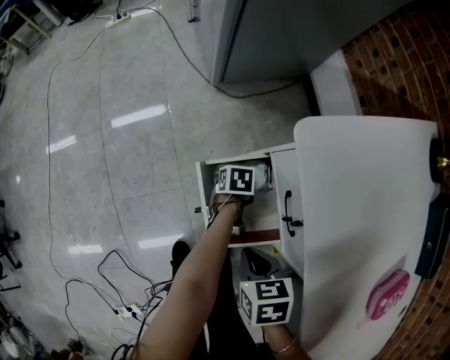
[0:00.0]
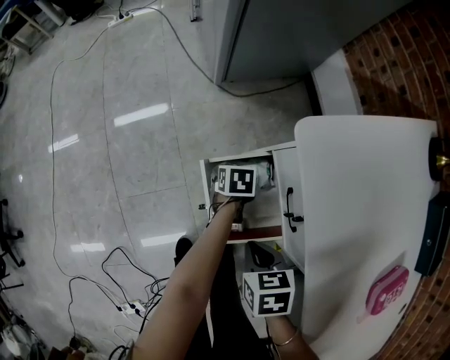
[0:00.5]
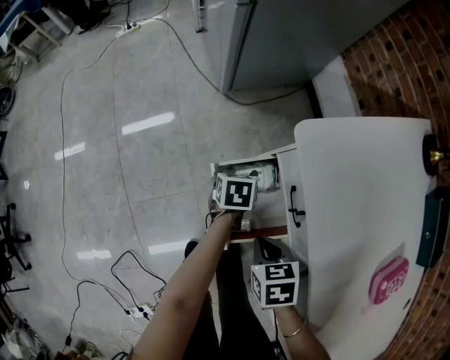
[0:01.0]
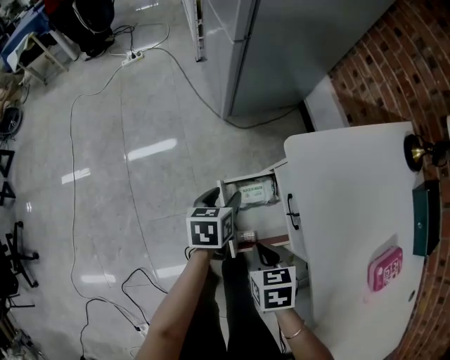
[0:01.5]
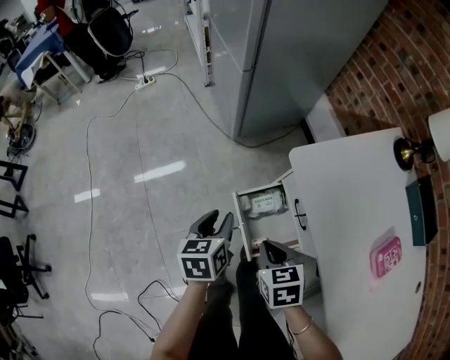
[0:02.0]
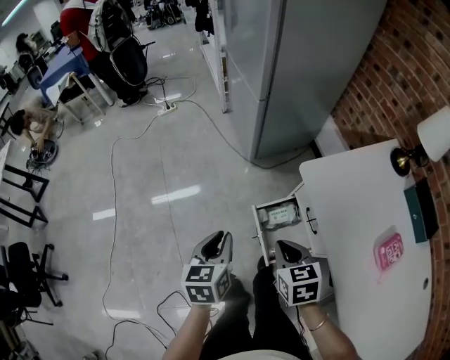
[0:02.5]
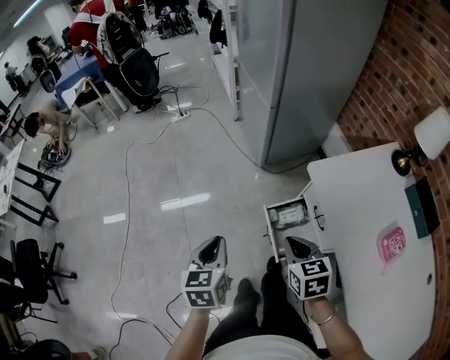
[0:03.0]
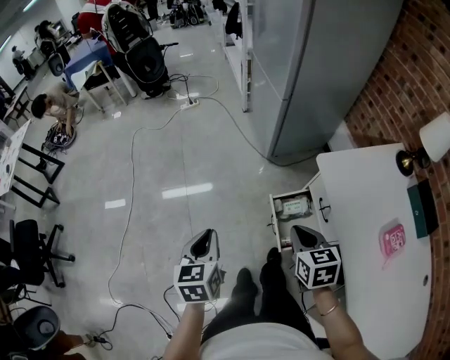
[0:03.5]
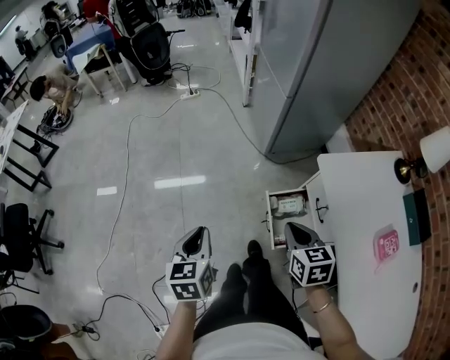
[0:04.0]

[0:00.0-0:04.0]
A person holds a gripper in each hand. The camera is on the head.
0:00.0 to 0:02.0: The right gripper travels upward by some 20 cm. Meanwhile the left gripper shifts roughly 40 cm upward and to the left, swivels some 30 degrees, and opens, then closes once more.
0:02.0 to 0:04.0: The left gripper travels to the left, backward and upward by roughly 35 cm, rotates about 20 degrees, and closes its fingers, while the right gripper moves upward, to the left and backward, about 20 cm.

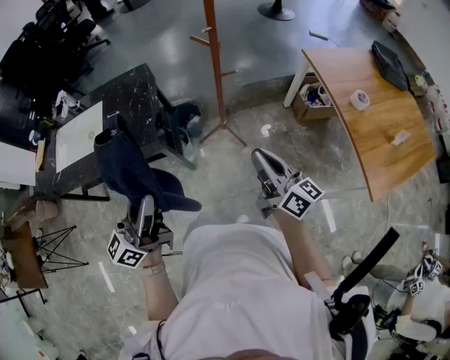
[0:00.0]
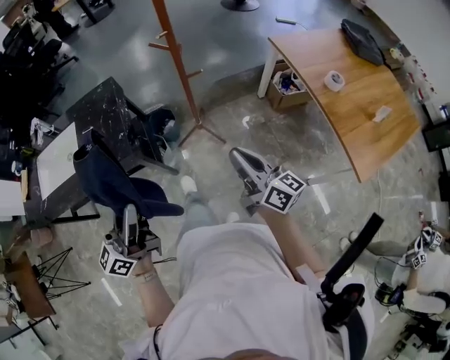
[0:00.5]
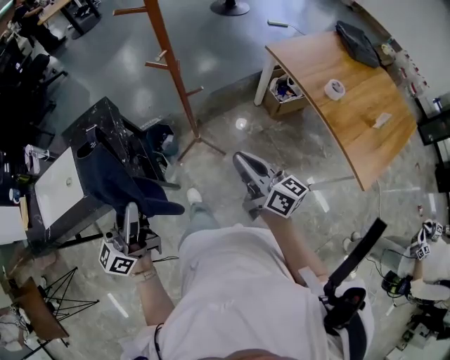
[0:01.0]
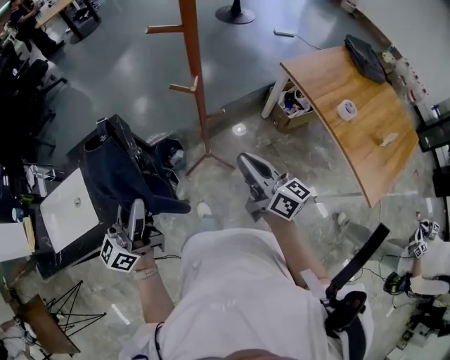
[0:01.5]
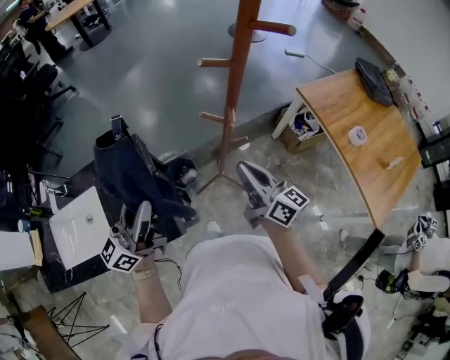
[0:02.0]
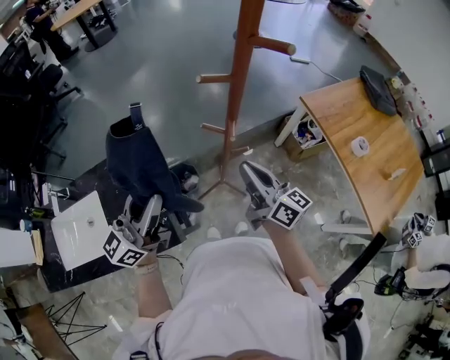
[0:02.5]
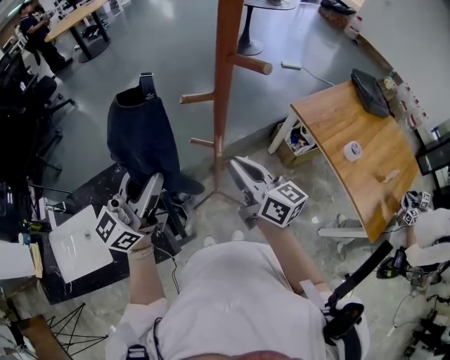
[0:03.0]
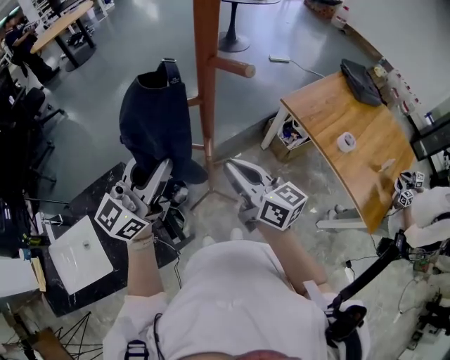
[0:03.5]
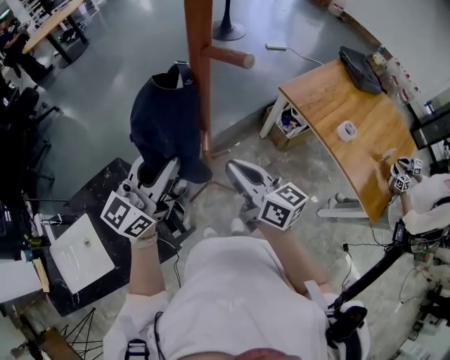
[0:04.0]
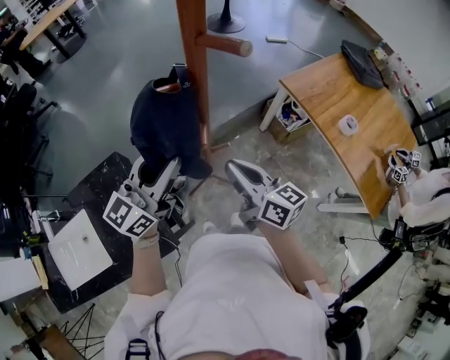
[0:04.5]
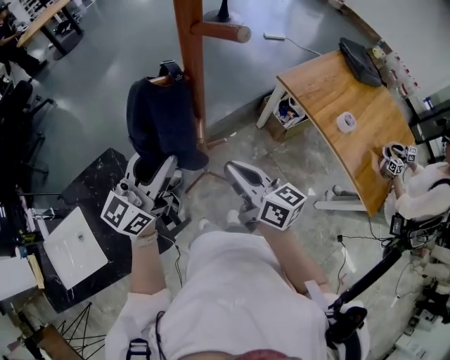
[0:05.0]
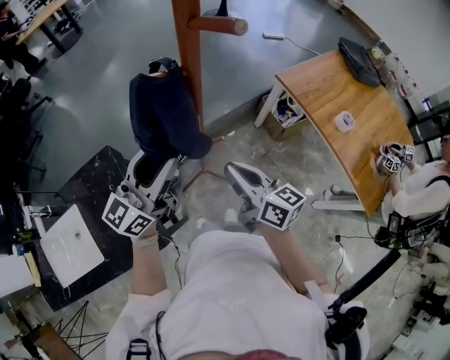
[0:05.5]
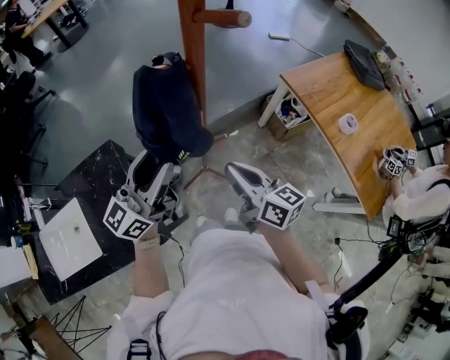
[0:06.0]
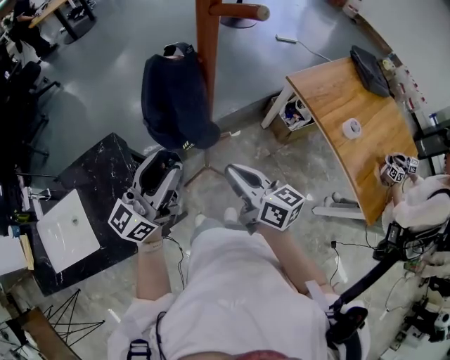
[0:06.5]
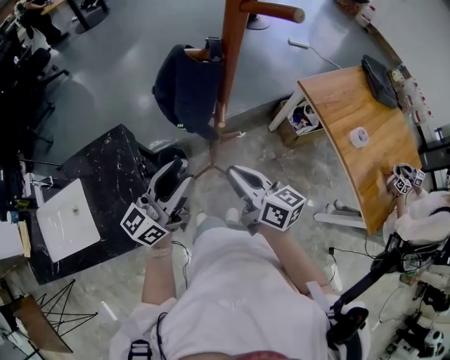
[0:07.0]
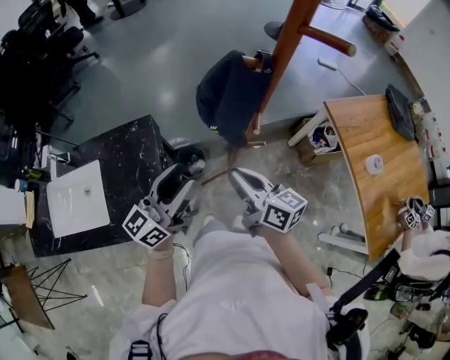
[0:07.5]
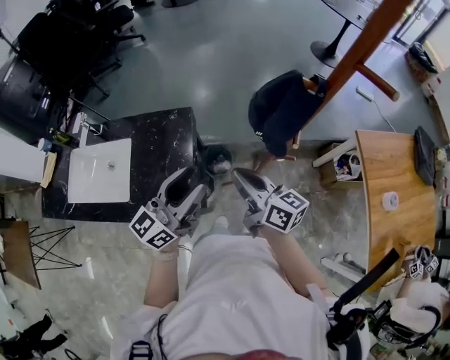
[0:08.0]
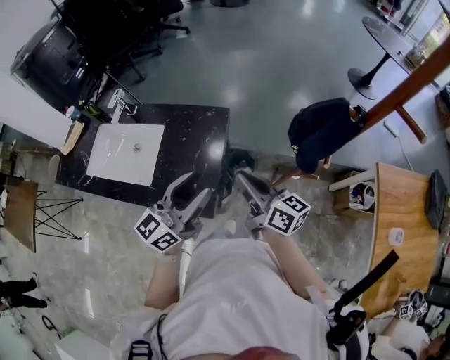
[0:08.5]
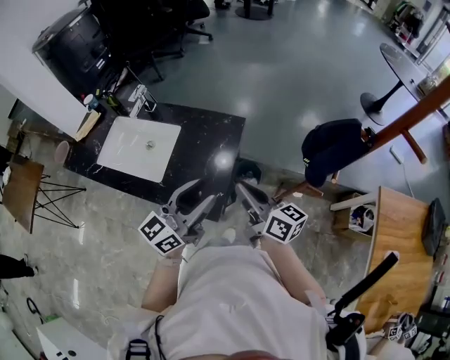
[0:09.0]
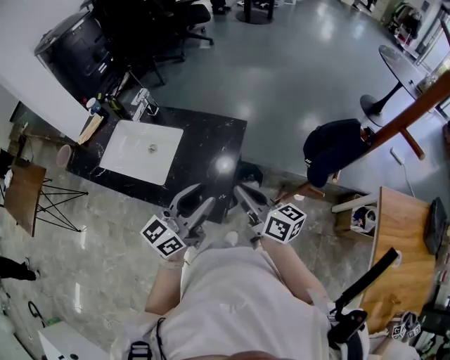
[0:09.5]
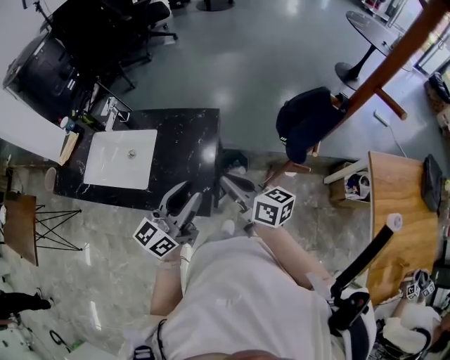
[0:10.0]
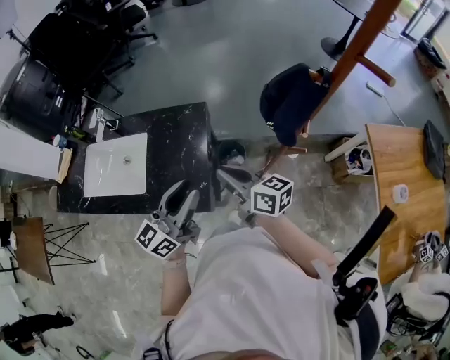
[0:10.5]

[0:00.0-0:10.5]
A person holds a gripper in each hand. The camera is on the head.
0:00.0 to 0:02.0: The left gripper goes approximately 35 cm forward. Meanwhile the right gripper goes roughly 35 cm forward and to the left.
0:02.0 to 0:04.0: The left gripper goes some 20 cm forward and to the right, and rotates roughly 20 degrees; the right gripper heads forward, covering approximately 5 cm.
0:04.0 to 0:06.5: The left gripper moves downward and backward, approximately 10 cm; the right gripper shifts approximately 5 cm downward.
0:06.5 to 0:08.5: The right gripper shifts by about 25 cm, and rotates some 40 degrees; the left gripper moves about 20 cm, and rotates roughly 30 degrees.
0:08.5 to 0:10.5: The grippers make only small movements.

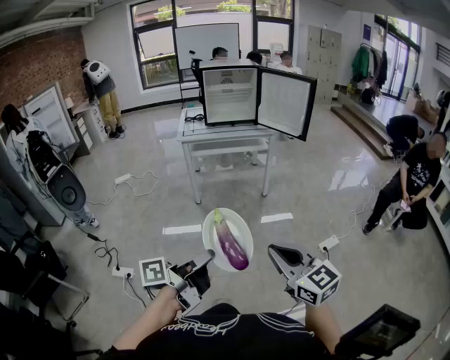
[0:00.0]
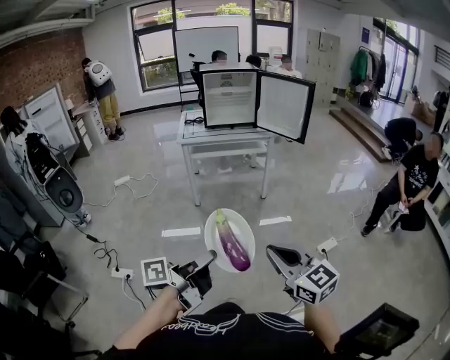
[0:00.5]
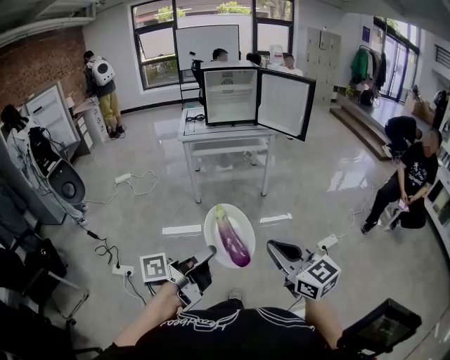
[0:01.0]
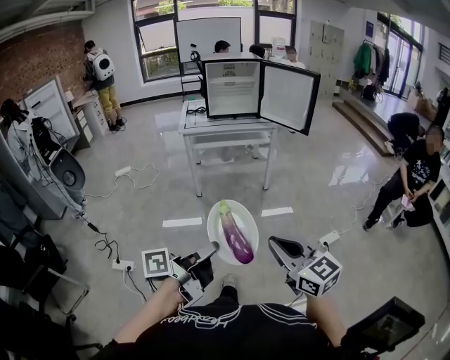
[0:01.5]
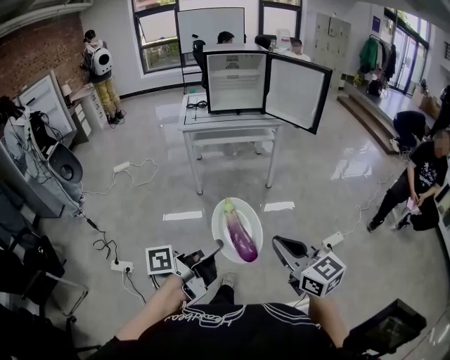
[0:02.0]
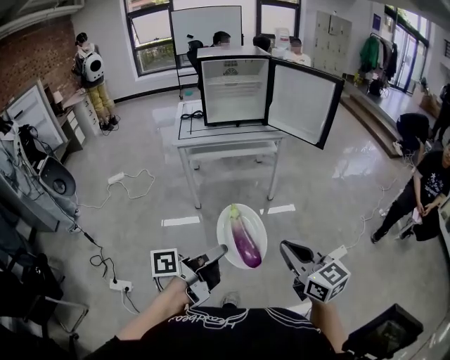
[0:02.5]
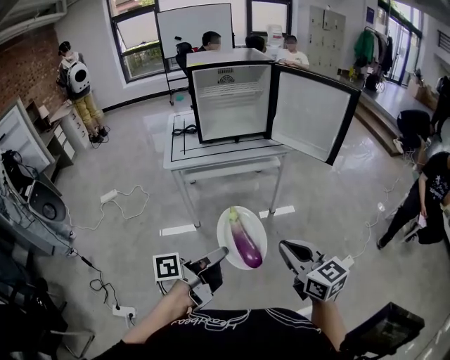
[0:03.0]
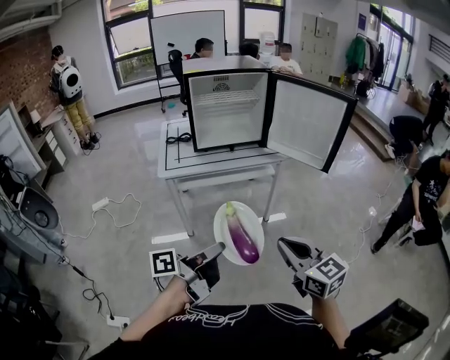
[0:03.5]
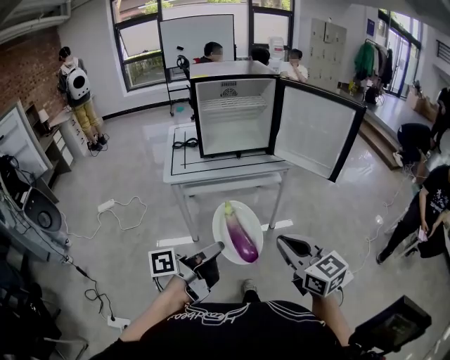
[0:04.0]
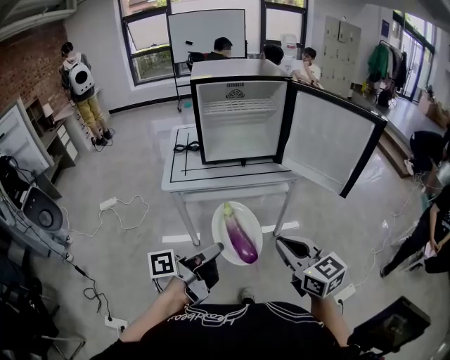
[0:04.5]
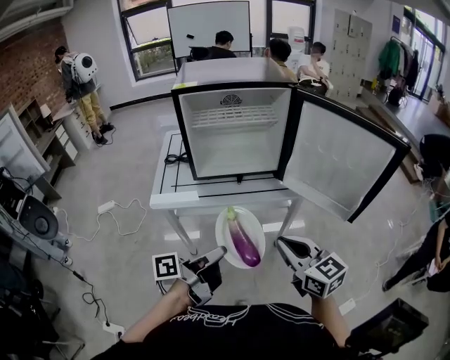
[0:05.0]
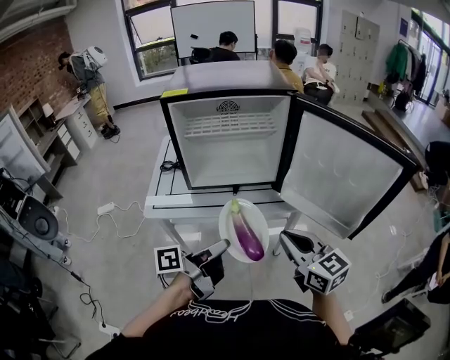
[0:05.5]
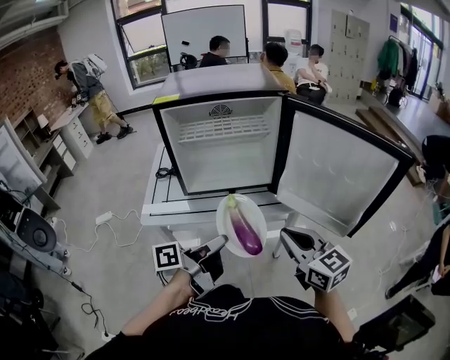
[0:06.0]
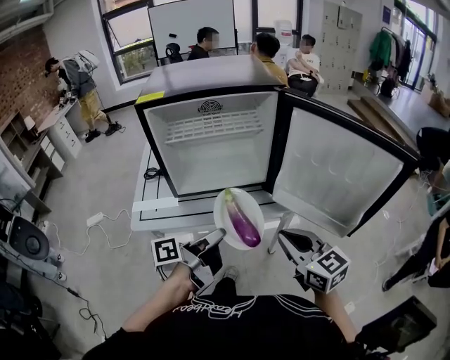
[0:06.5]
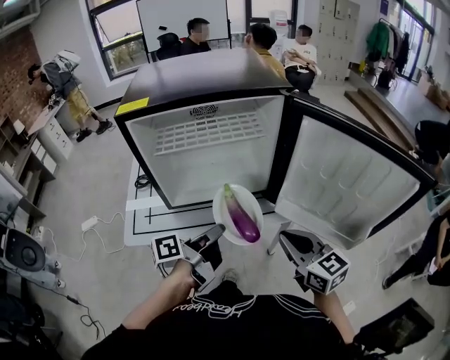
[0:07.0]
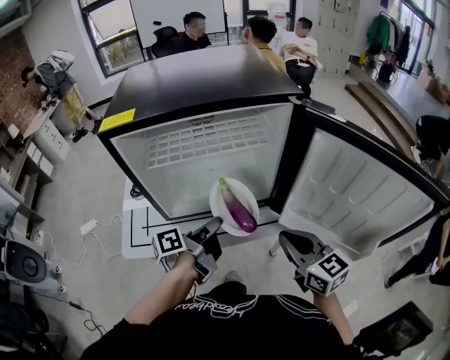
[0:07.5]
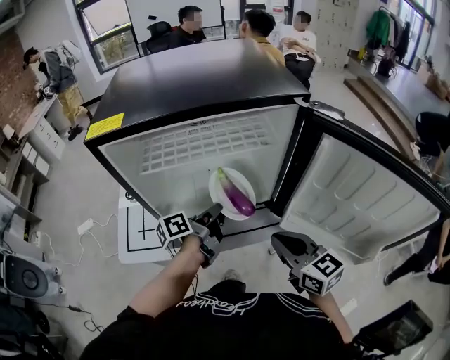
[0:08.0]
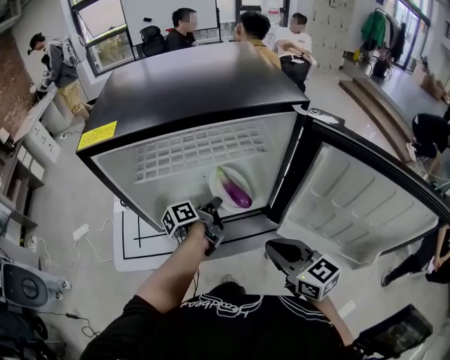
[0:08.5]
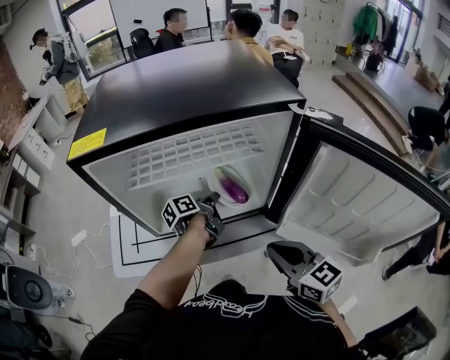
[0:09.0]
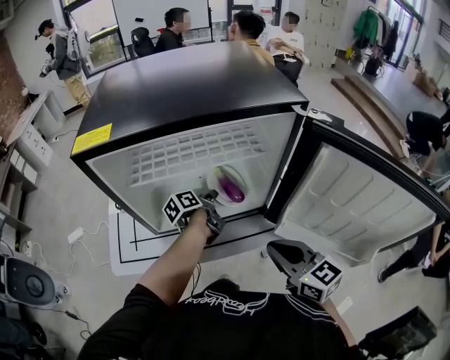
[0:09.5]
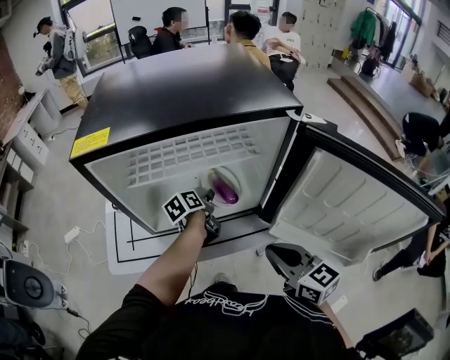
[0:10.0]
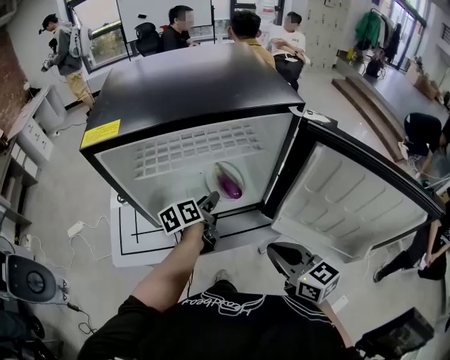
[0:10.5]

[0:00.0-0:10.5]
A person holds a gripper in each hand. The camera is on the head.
0:00.0 to 0:02.0: The grippers both shift forward by approximately 10 cm.
0:02.0 to 0:04.0: The pair of grippers is taken forward, some 40 cm.
0:04.0 to 0:06.5: The grippers both shift forward by approximately 40 cm.
0:06.5 to 0:08.5: The right gripper travels forward by about 15 cm, while the left gripper goes roughly 30 cm forward.
0:08.5 to 0:10.5: The left gripper rotates some 20 degrees, and opens.

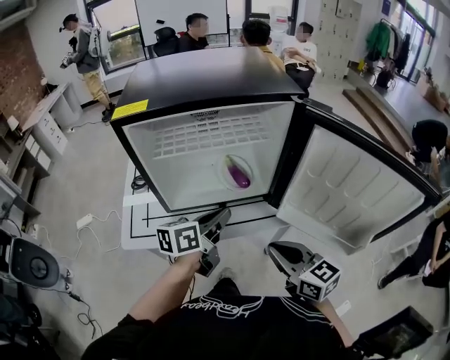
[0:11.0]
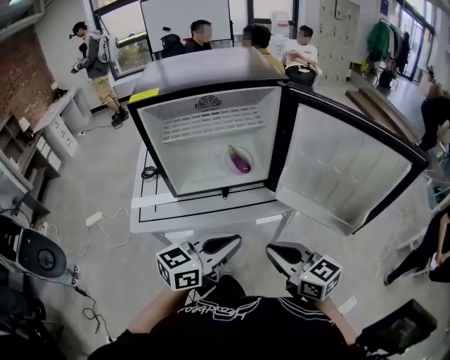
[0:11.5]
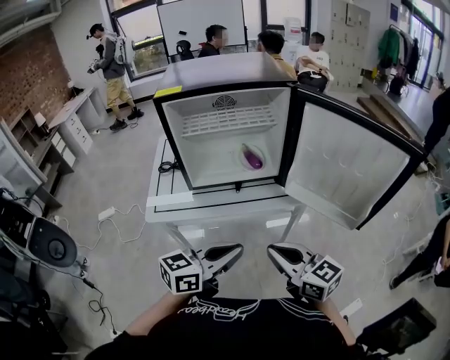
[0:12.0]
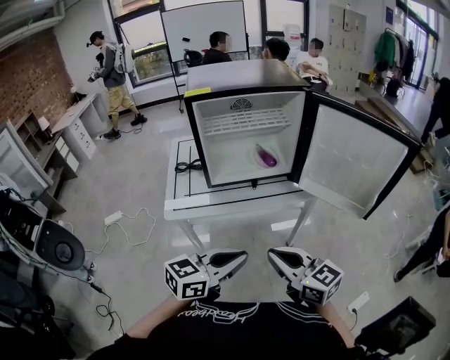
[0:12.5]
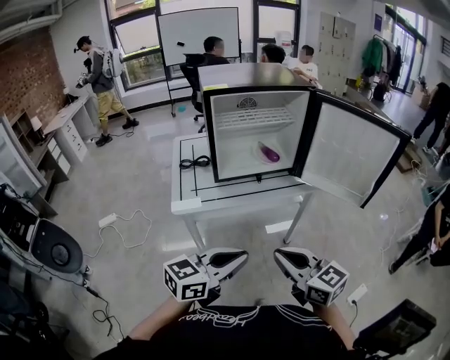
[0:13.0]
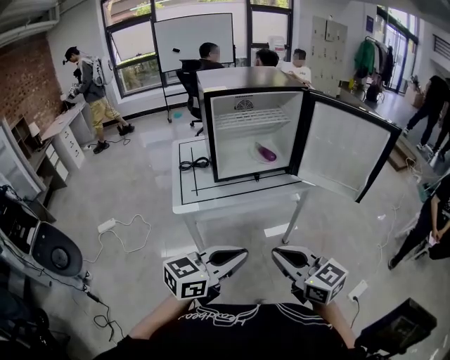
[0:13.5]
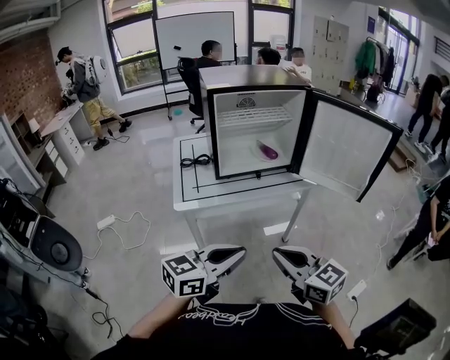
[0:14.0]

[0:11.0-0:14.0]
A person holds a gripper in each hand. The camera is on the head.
0:11.0 to 0:12.5: The right gripper shifts approximately 25 cm backward and to the left. The left gripper goes some 30 cm backward, and changes its angle by about 30 degrees.
0:12.5 to 0:14.0: Both grippers travel together backward and to the left, some 15 cm.
